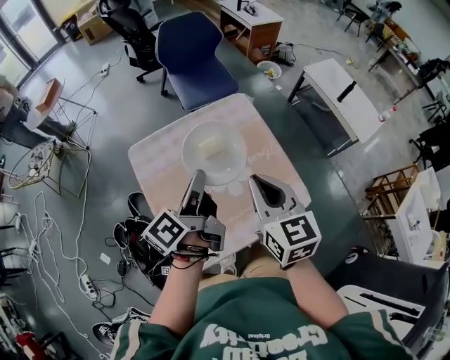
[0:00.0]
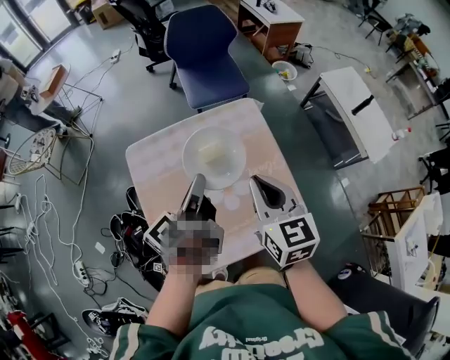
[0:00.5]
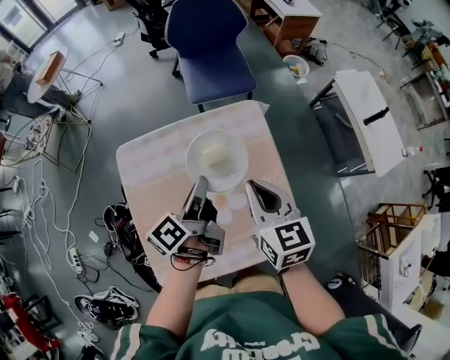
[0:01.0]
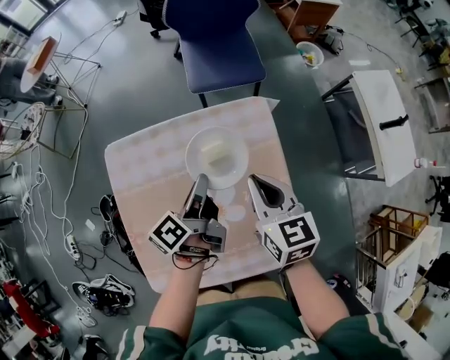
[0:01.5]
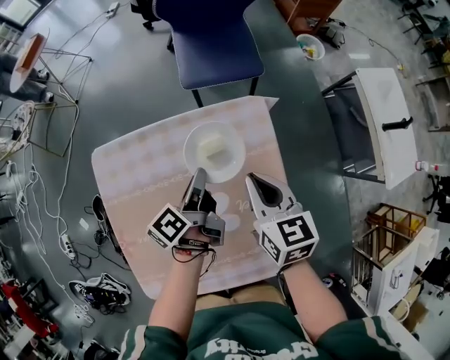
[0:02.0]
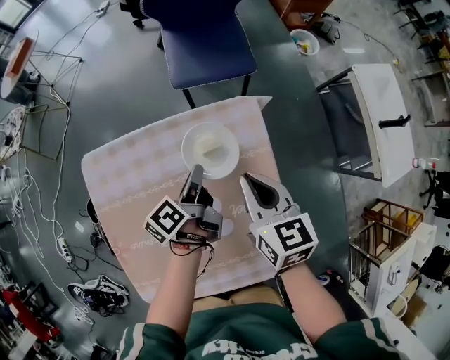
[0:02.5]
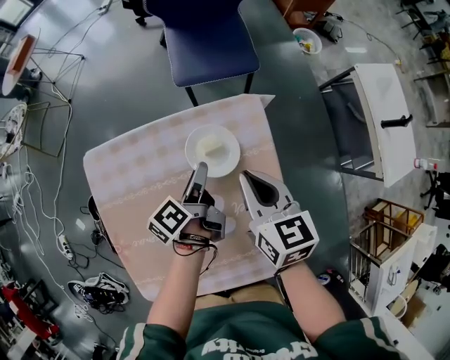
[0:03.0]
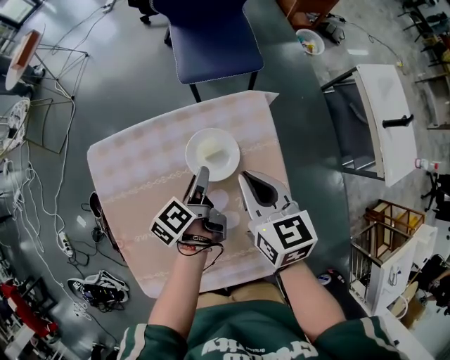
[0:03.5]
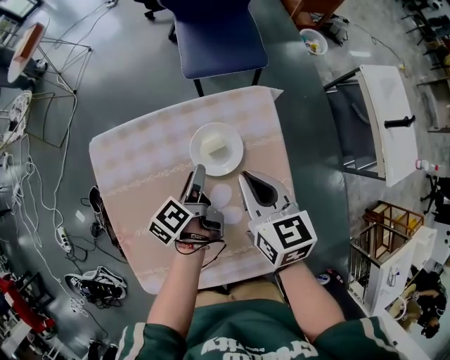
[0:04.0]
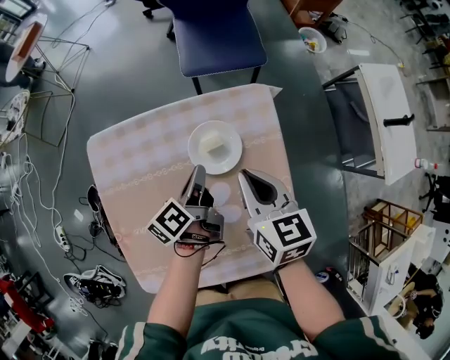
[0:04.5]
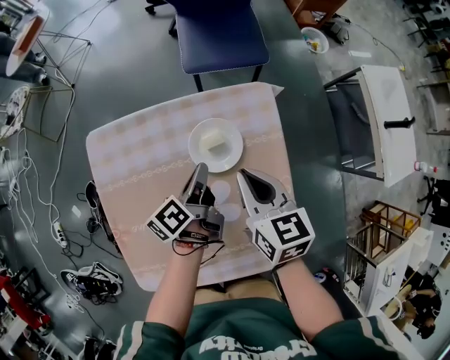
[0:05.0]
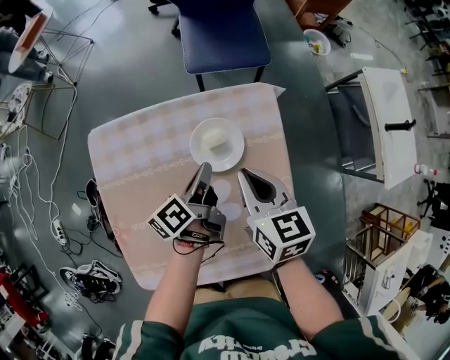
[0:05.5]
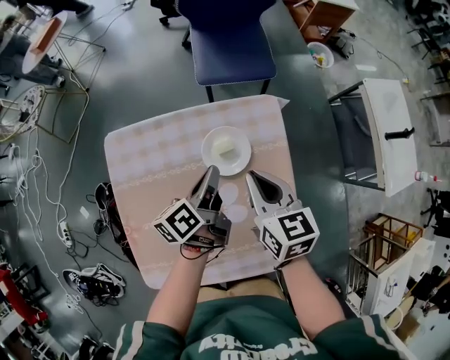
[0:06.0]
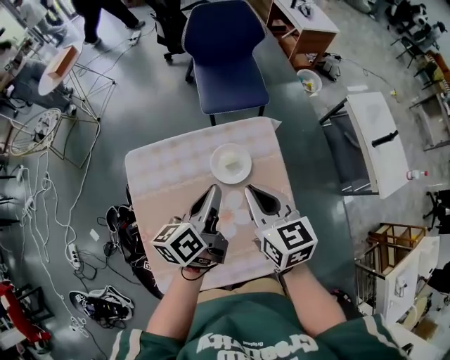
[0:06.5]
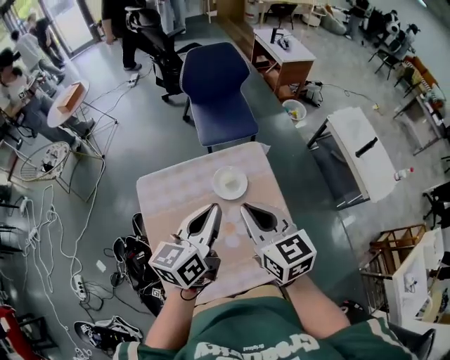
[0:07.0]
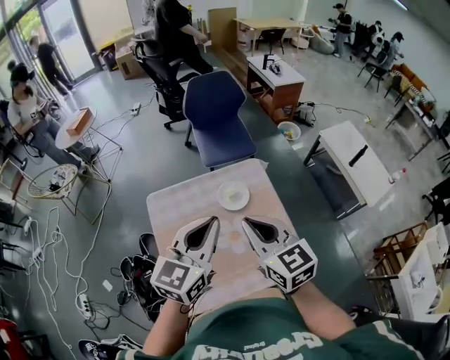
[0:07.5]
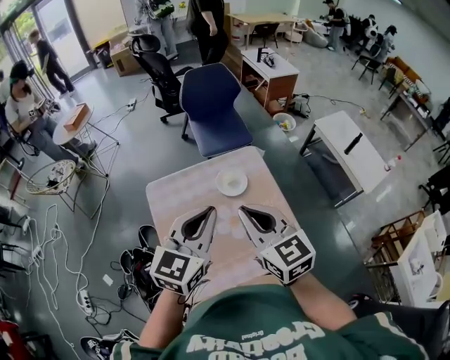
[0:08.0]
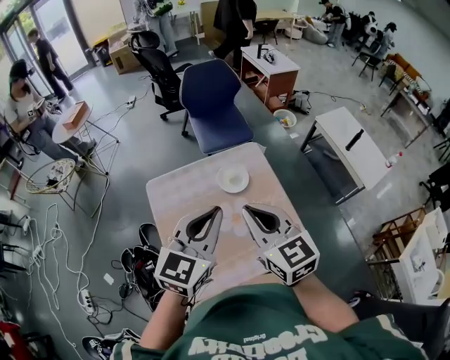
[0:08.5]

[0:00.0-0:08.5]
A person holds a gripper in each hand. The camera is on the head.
0:00.0 to 0:02.0: The right gripper shifts approximately 30 cm forward and downward, and changes its angle by some 20 degrees, while the left gripper shifts roughly 30 cm downward and forward, and turns by approximately 20 degrees.
0:02.0 to 0:04.0: The left gripper travels downward by roughly 5 cm, and opens its fingers.
0:04.0 to 0:06.5: The right gripper moves upward, approximately 10 cm. The left gripper travels upward by approximately 20 cm, changes its angle by roughly 30 degrees, and closes.
0:06.5 to 0:08.5: The right gripper shifts roughly 20 cm backward and upward. The left gripper goes roughly 25 cm upward and backward, and rotates around the line of its fingers by some 60 degrees, clockwise from behind.

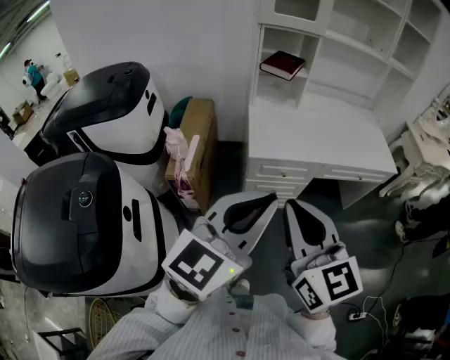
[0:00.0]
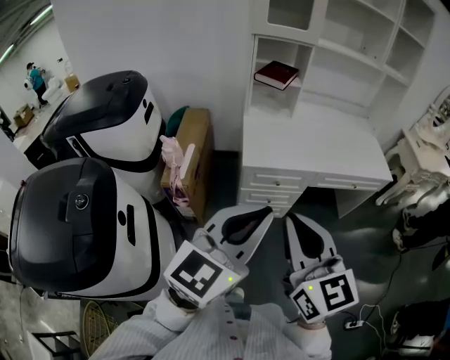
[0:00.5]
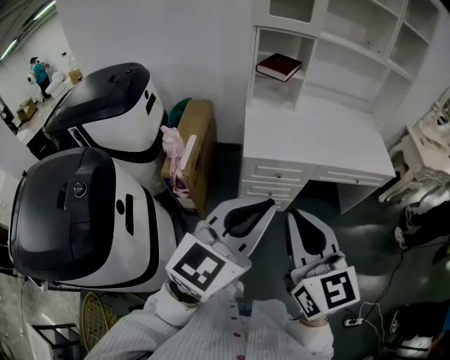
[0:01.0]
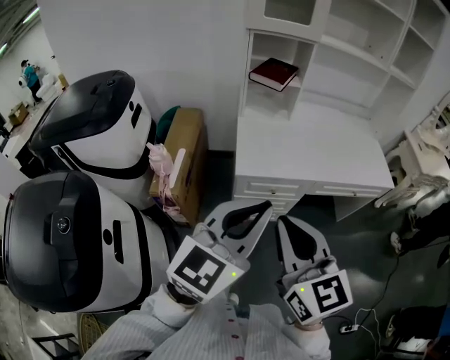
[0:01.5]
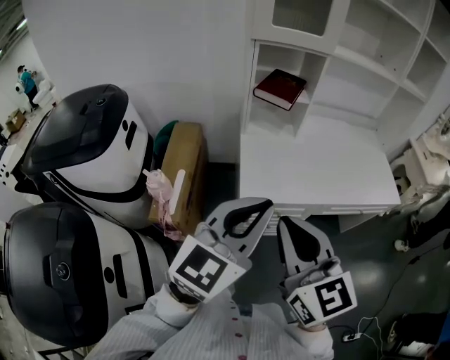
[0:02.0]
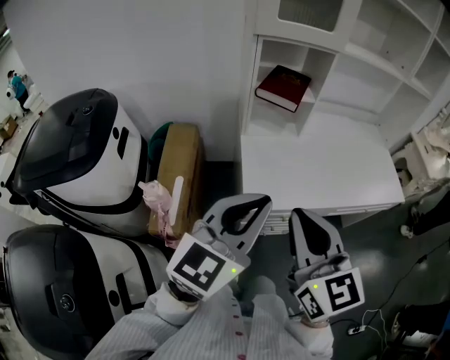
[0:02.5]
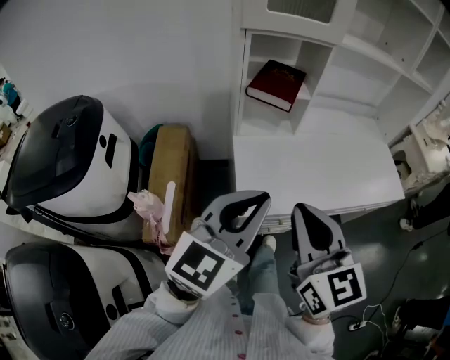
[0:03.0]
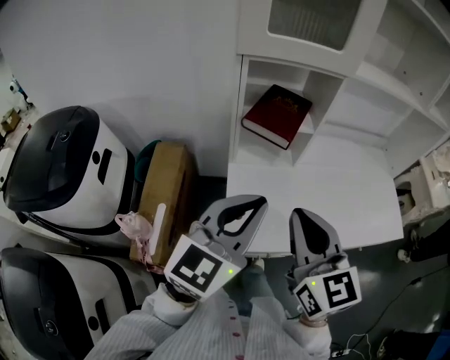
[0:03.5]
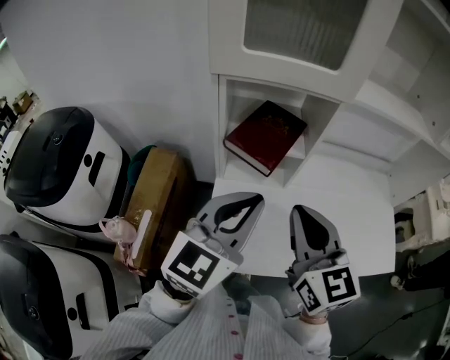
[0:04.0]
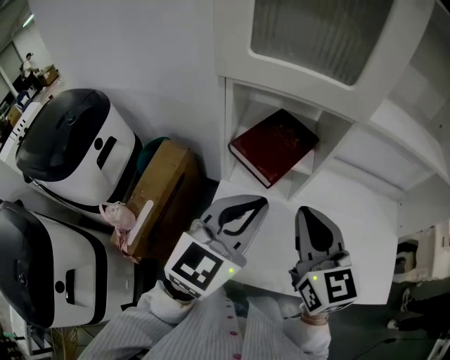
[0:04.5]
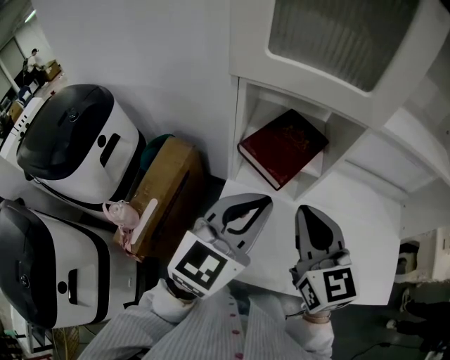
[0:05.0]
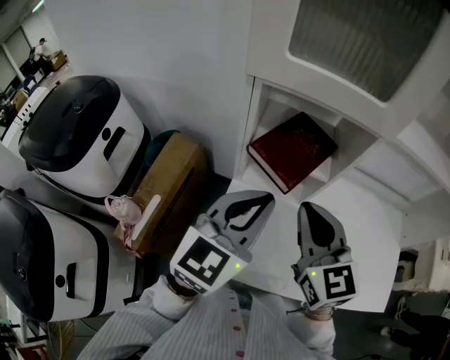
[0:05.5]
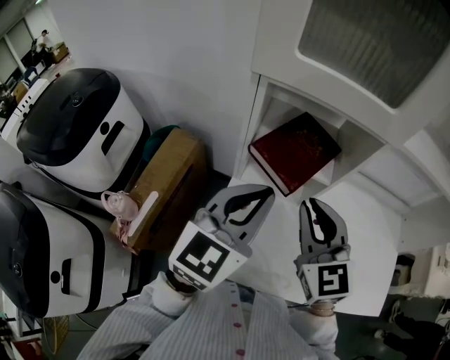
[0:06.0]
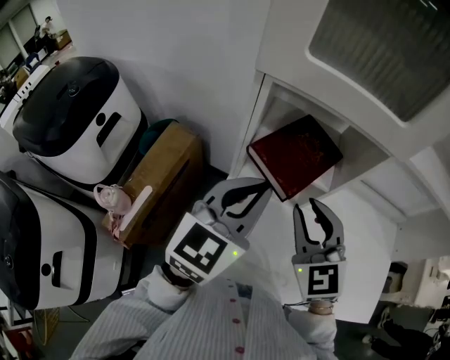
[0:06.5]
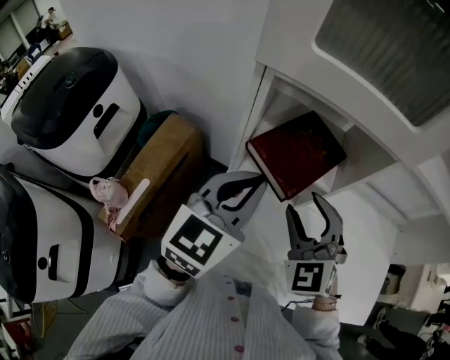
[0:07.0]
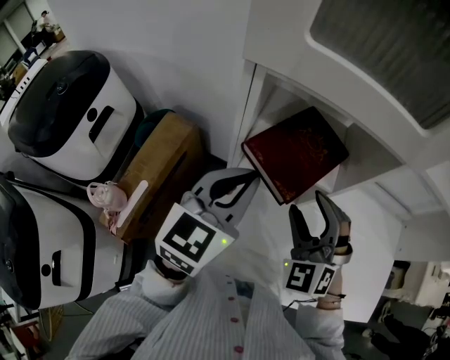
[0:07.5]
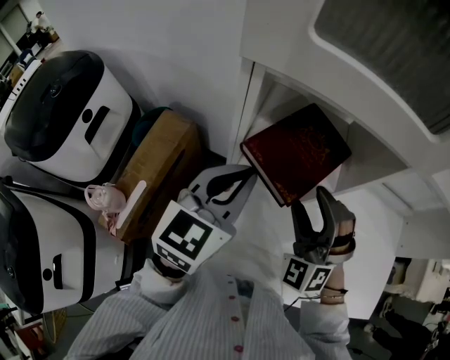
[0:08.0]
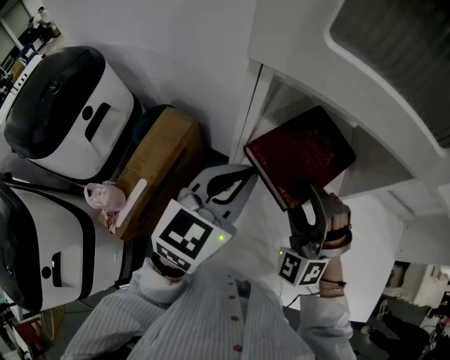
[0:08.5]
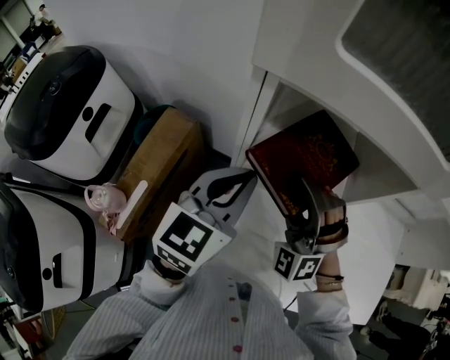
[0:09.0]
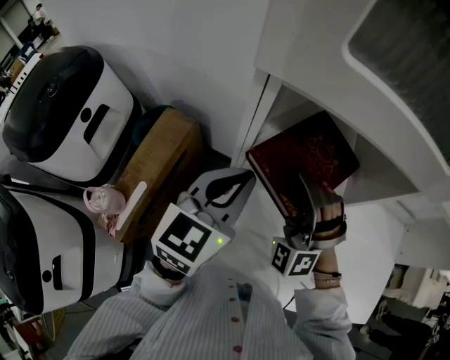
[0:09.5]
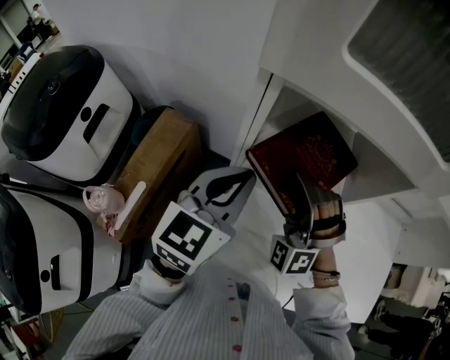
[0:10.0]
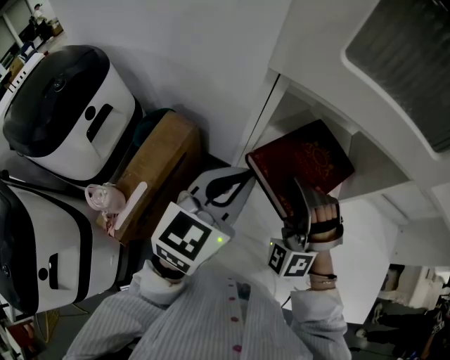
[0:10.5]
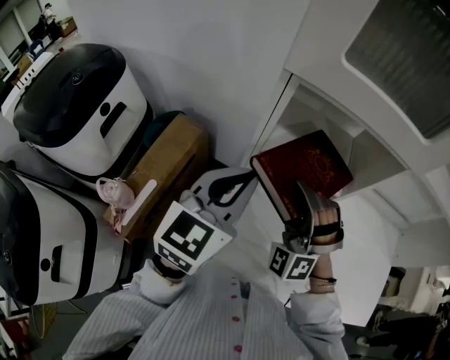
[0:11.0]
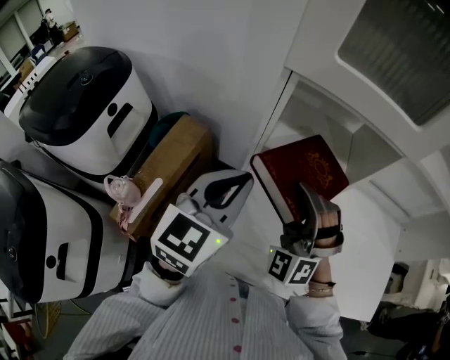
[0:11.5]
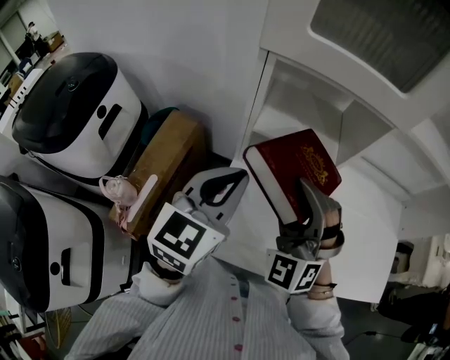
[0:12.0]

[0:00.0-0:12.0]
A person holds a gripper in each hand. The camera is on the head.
0:00.0 to 0:02.0: Both grippers move forward, about 20 cm.
0:02.0 to 0:04.0: The grippers both shift forward by about 35 cm.
0:04.0 to 0:06.0: The grippers both shift forward by approximately 10 cm.
0:06.0 to 0:08.0: The right gripper is displaced downward and forward by about 10 cm, rotates around the line of its fingers by about 50 degrees, counterclockwise from behind, and opens. The left gripper moves forward and downward, about 10 cm.
0:08.0 to 0:10.0: The right gripper travels to the left by approximately 5 cm.
0:10.0 to 0:12.0: The left gripper is displaced backward by about 10 cm, while the right gripper heads backward and upward, covering about 15 cm, and rotates approximately 20 degrees.

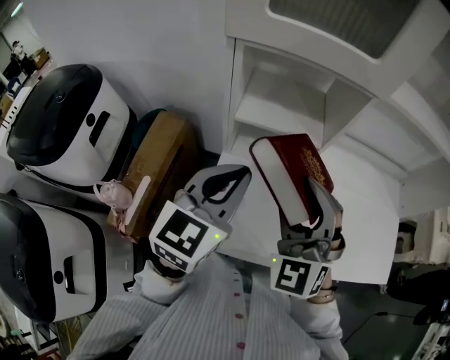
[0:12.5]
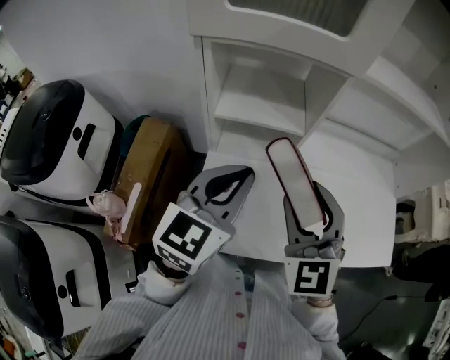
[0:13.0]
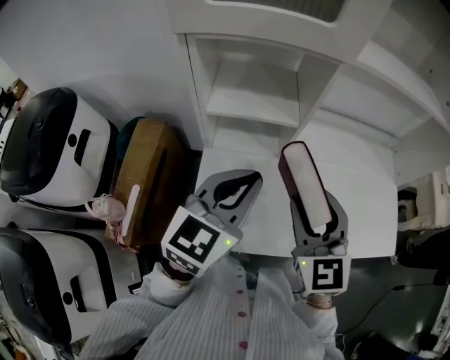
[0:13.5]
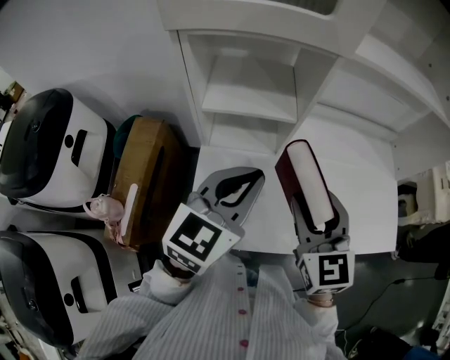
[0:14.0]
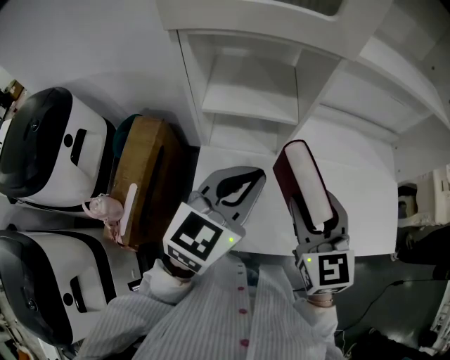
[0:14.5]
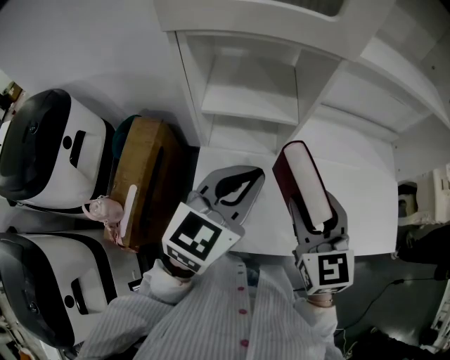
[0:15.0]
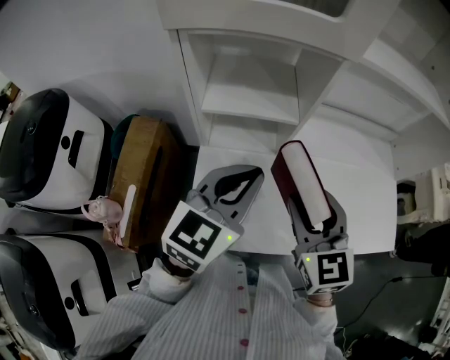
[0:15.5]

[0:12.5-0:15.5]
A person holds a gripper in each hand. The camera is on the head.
0:12.5 to 0:14.0: The two grippers go about 10 cm to the right. The right gripper rotates around the line of its fingers by roughly 40 degrees, clockwise from behind.
0:14.0 to 0:15.5: The grippers make only small movements.

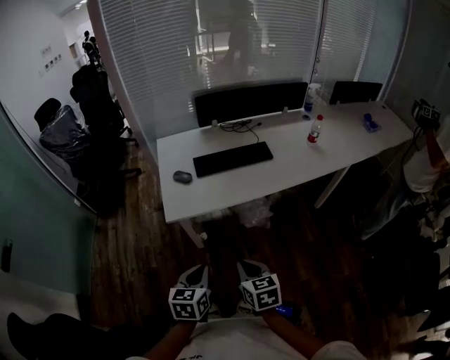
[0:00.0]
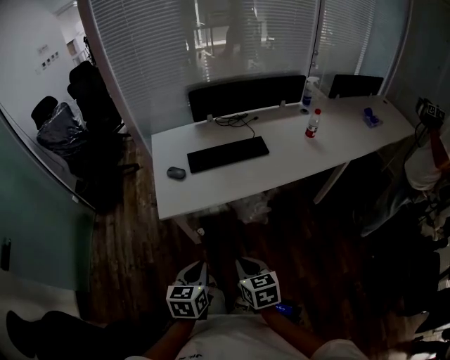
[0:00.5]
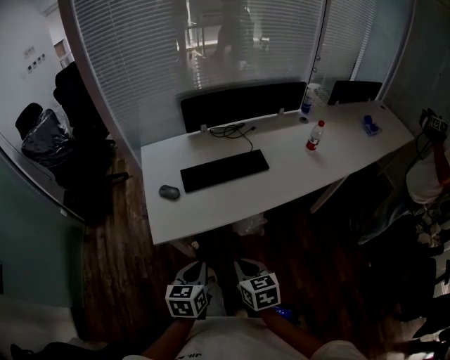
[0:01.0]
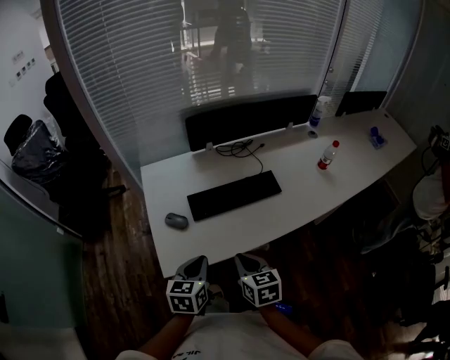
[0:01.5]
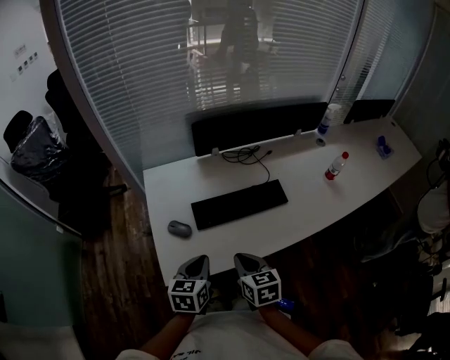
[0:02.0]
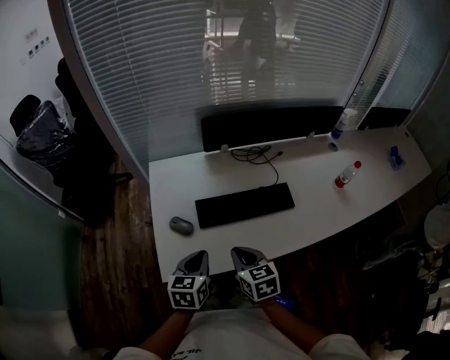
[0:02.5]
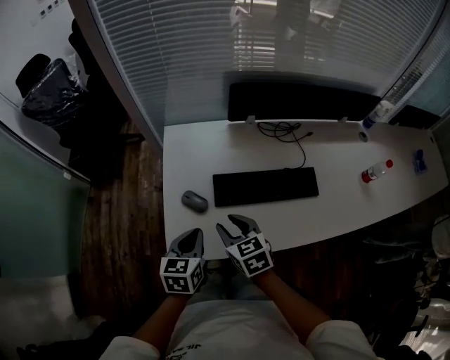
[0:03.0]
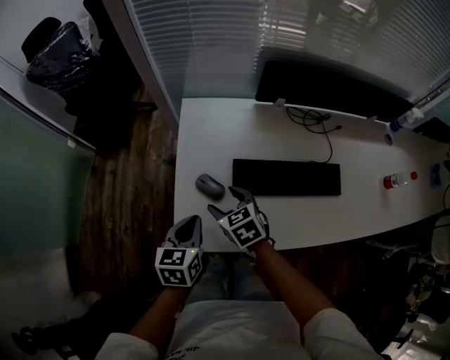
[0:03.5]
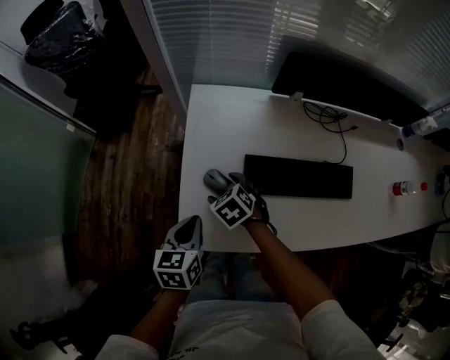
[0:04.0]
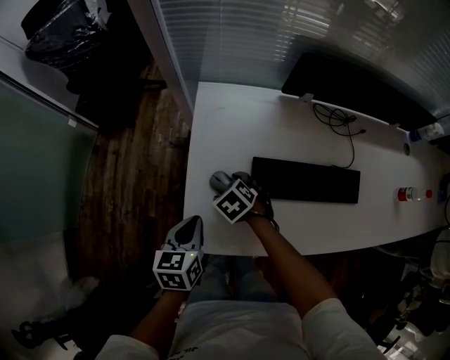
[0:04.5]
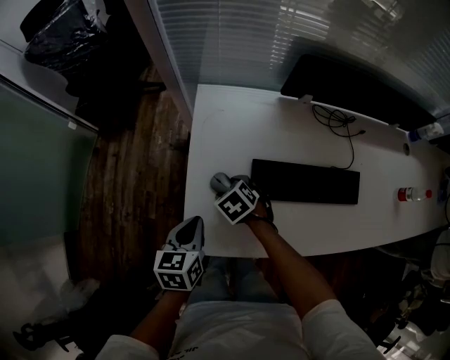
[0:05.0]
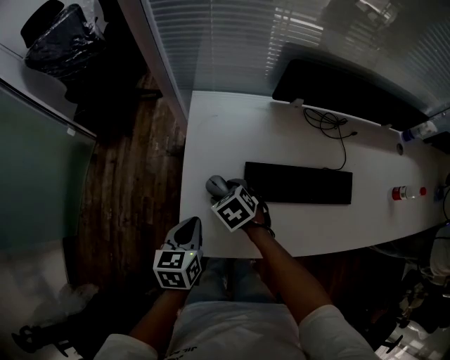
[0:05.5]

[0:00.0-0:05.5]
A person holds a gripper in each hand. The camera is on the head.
0:00.0 to 0:02.0: Both grippers travel together forward, some 35 cm.
0:02.0 to 0:03.5: The right gripper ends up about 25 cm from where it was, rotates about 40 degrees, and opens up, while the left gripper ends up roughly 15 cm from where it was.
0:03.5 to 0:05.5: The right gripper travels downward by approximately 5 cm.
